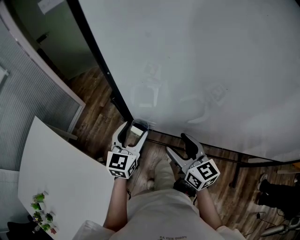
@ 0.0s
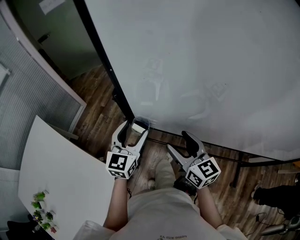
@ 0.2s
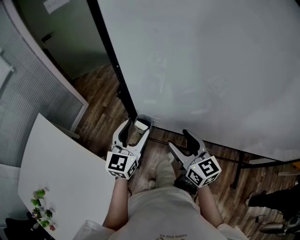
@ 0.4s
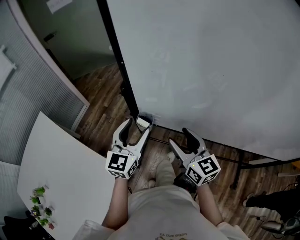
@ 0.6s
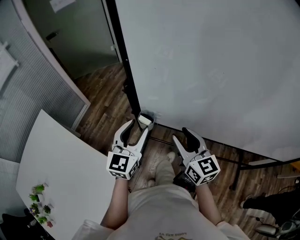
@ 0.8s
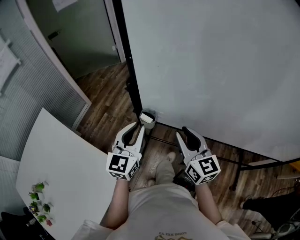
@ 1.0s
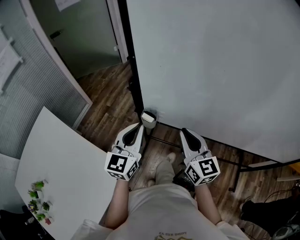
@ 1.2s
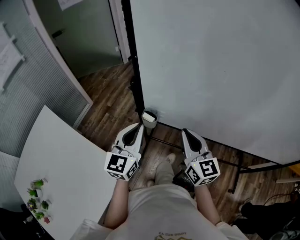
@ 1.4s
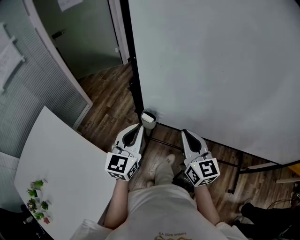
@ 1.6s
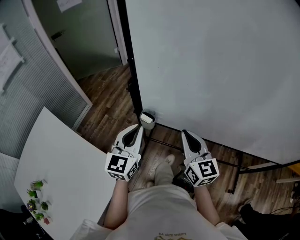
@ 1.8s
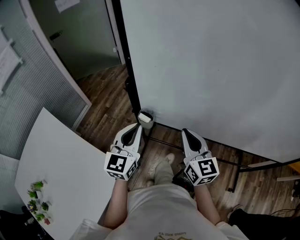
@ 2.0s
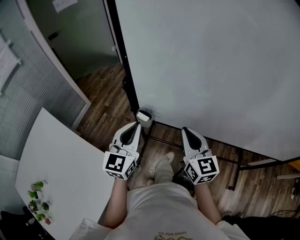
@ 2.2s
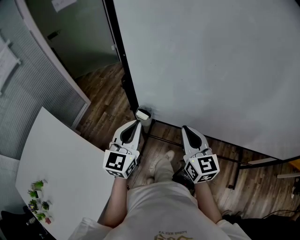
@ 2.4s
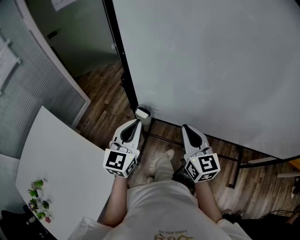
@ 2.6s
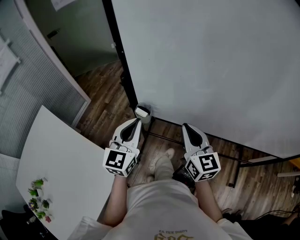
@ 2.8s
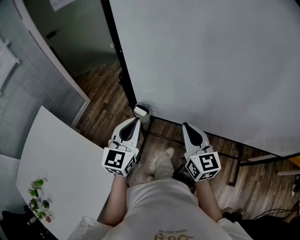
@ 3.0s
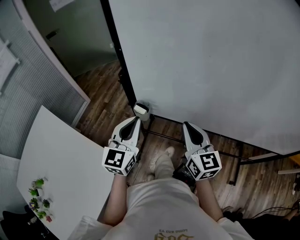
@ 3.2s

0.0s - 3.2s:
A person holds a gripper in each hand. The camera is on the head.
0.0s - 1.6s: The right gripper goes roughly 5 cm upward, and closes. Meanwhile the left gripper heads backward and upward, covering roughly 10 cm, and closes its fingers.
1.6s - 3.2s: The grippers move only a little.

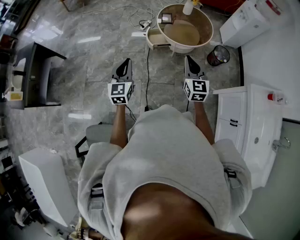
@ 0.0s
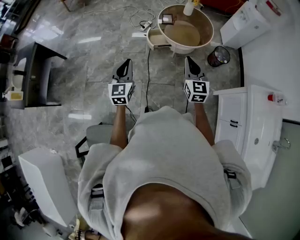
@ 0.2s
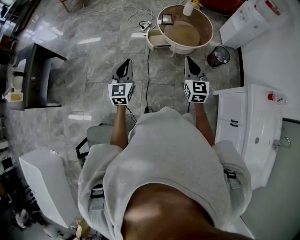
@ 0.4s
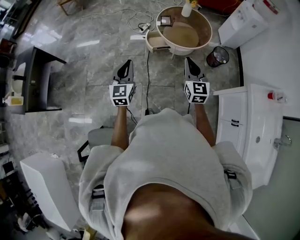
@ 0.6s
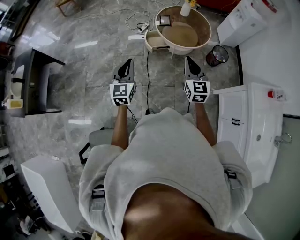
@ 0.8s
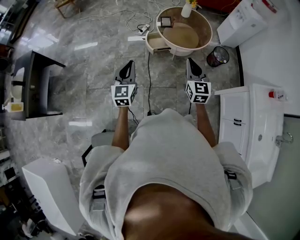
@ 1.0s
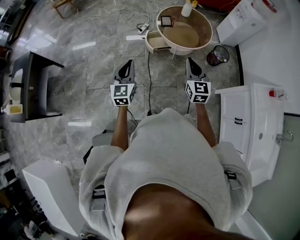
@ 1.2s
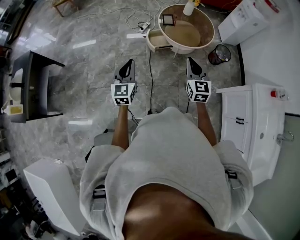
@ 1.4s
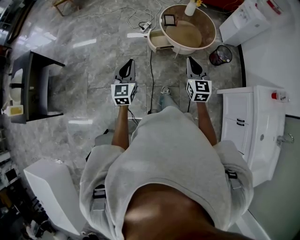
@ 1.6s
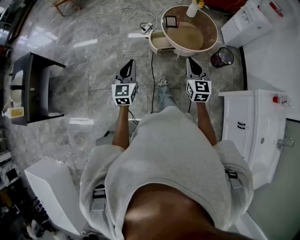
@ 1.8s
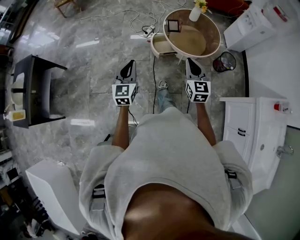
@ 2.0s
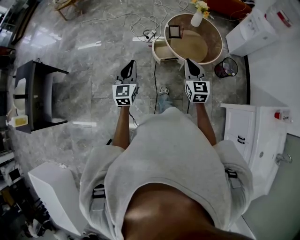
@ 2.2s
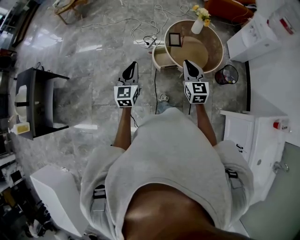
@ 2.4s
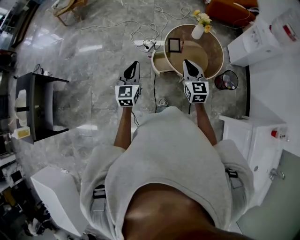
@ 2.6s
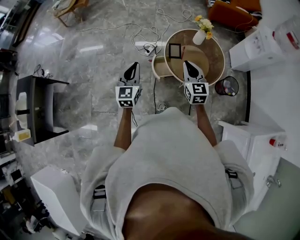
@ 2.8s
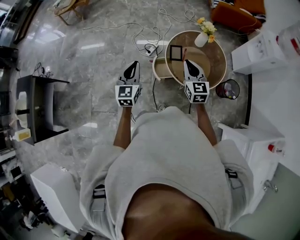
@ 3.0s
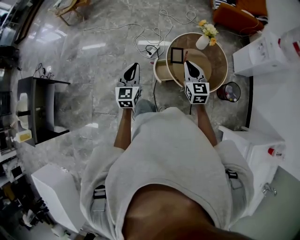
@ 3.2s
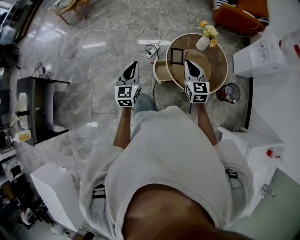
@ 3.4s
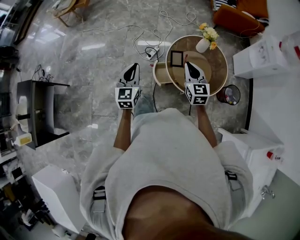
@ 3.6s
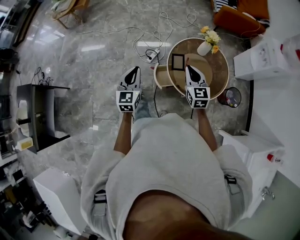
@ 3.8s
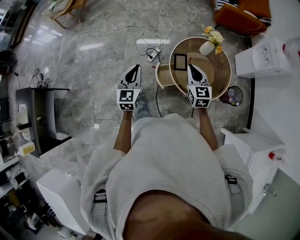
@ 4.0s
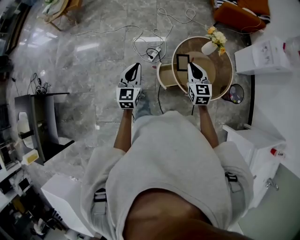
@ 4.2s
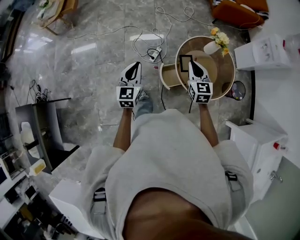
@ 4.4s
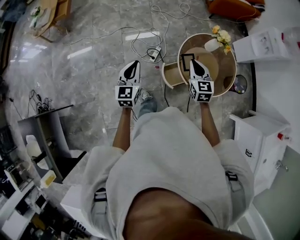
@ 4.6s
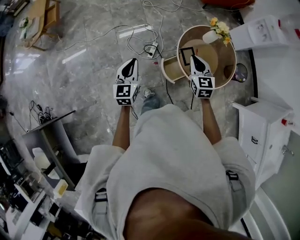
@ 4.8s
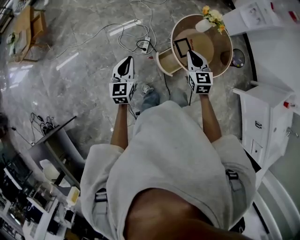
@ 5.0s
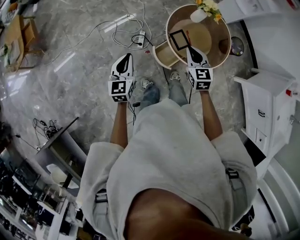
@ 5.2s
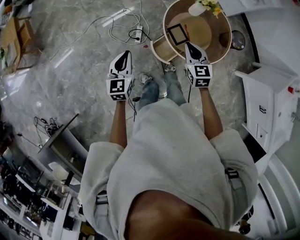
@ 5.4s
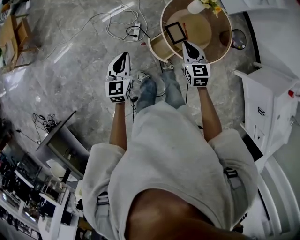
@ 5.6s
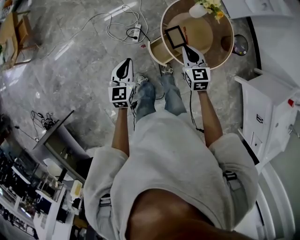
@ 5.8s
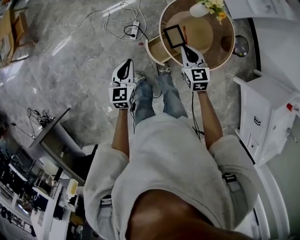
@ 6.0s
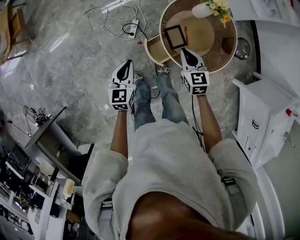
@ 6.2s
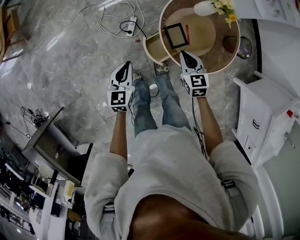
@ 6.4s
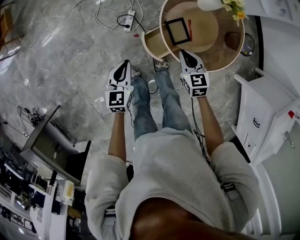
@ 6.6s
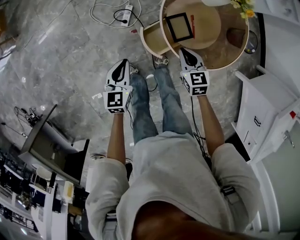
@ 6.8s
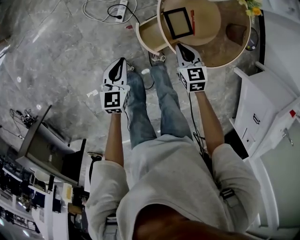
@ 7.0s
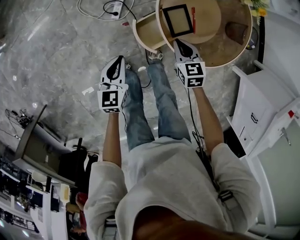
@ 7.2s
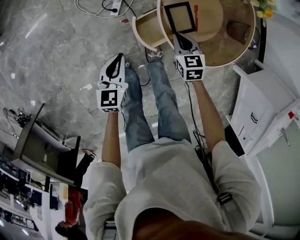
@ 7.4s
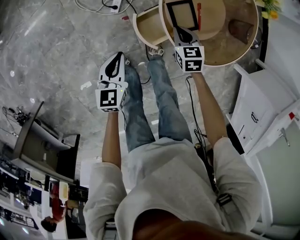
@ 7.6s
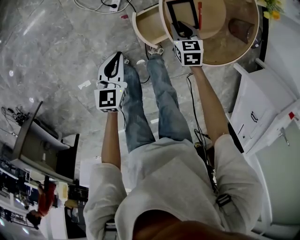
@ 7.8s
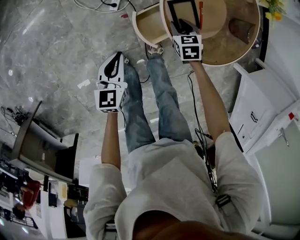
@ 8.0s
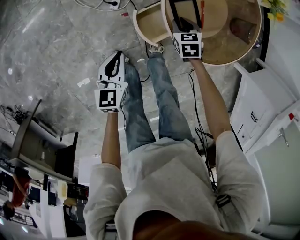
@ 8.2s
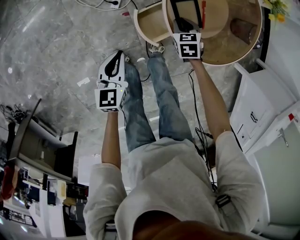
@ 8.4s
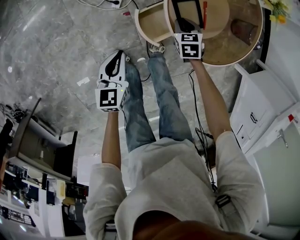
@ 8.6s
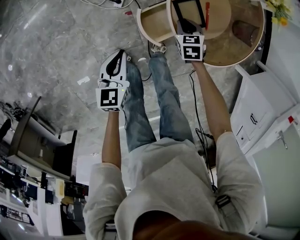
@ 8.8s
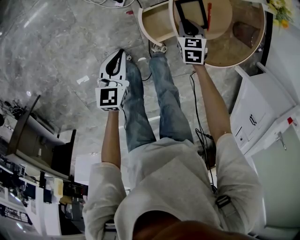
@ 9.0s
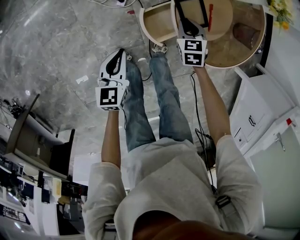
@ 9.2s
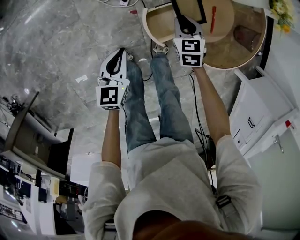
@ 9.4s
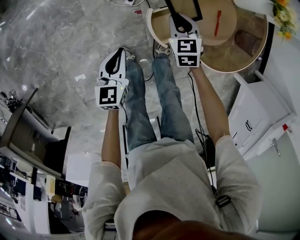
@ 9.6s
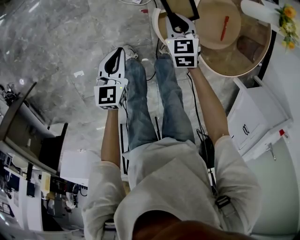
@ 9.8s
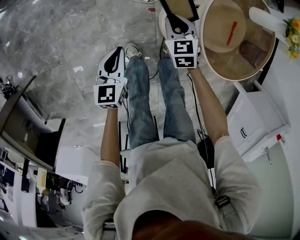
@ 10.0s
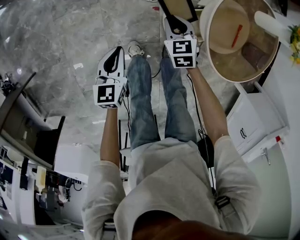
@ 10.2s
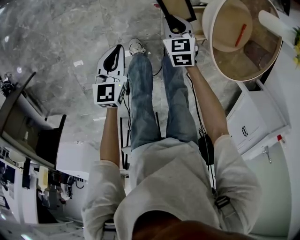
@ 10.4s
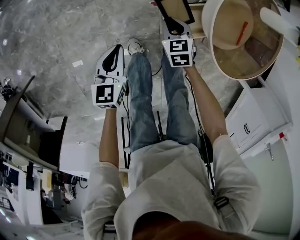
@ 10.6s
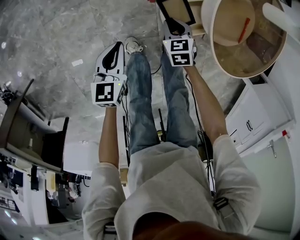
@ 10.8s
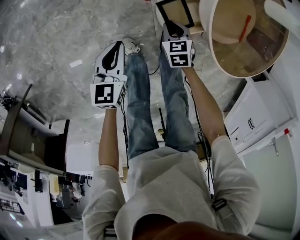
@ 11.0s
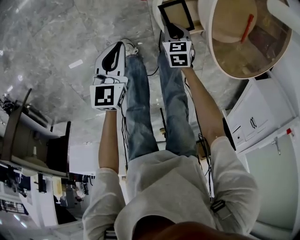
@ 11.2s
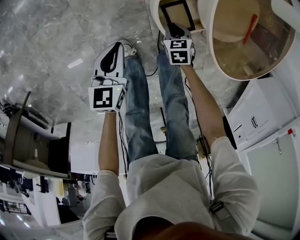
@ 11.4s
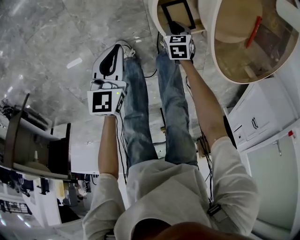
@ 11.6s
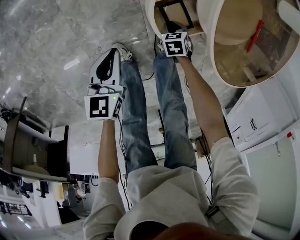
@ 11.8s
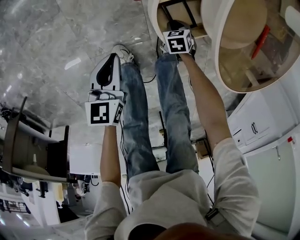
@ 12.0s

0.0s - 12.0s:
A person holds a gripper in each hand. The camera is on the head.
0.0s - 1.6s: The left gripper travels to the left and forward by some 10 cm. The right gripper shifts about 10 cm to the left.
1.6s - 3.0s: Both grippers move forward, some 40 cm.
3.0s - 4.4s: The grippers both shift forward and to the left by roughly 20 cm.
4.4s - 6.0s: Both grippers move downward and forward, roughly 20 cm. The left gripper turns by roughly 20 degrees.
6.0s - 7.6s: The two grippers go approximately 30 cm downward.
7.6s - 9.0s: The grippers stay close to where they were, moving slightly.
9.0s - 10.4s: The left gripper is displaced to the left by about 15 cm. Meanwhile the right gripper goes approximately 25 cm to the left.
10.4s - 12.0s: The right gripper heads downward, covering approximately 35 cm, and rotates roughly 30 degrees. The left gripper heads downward, covering about 15 cm.

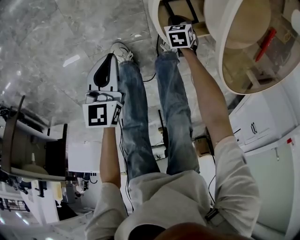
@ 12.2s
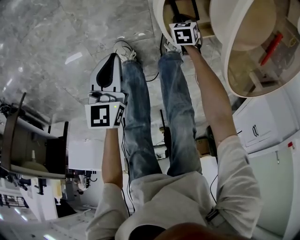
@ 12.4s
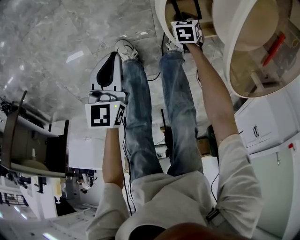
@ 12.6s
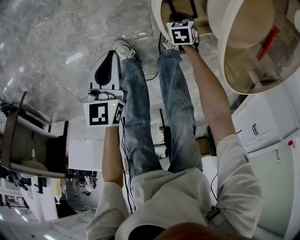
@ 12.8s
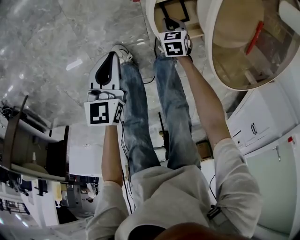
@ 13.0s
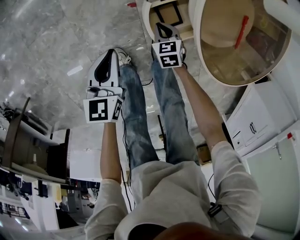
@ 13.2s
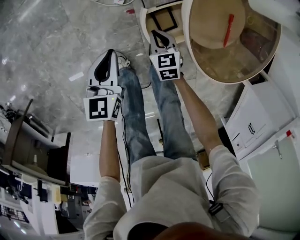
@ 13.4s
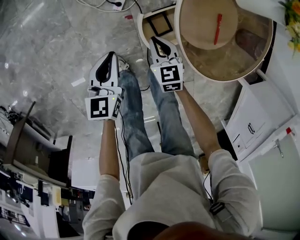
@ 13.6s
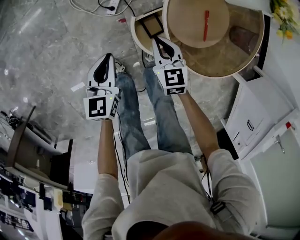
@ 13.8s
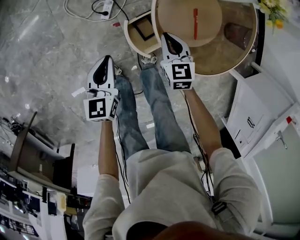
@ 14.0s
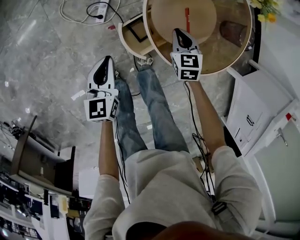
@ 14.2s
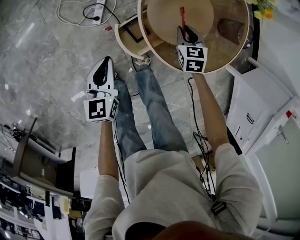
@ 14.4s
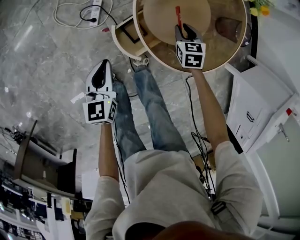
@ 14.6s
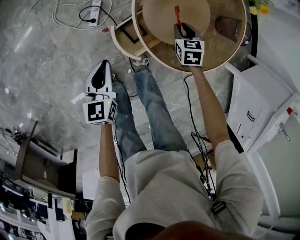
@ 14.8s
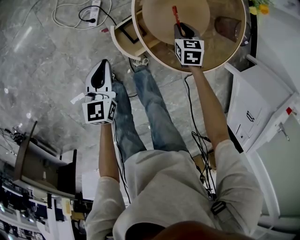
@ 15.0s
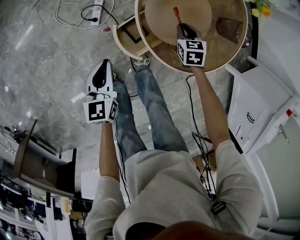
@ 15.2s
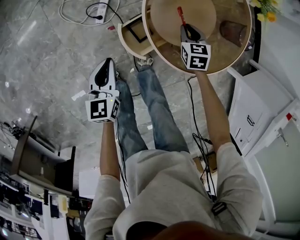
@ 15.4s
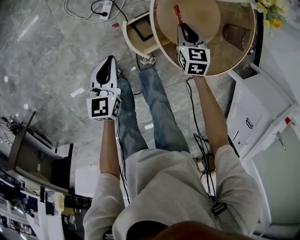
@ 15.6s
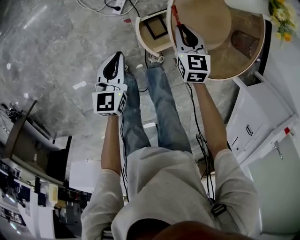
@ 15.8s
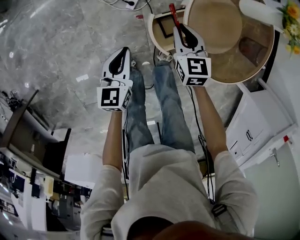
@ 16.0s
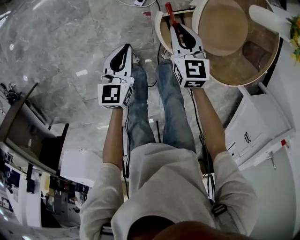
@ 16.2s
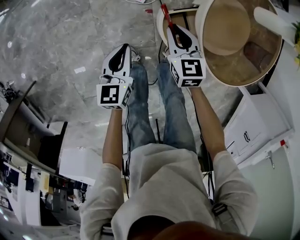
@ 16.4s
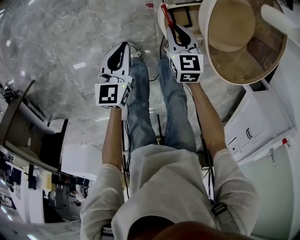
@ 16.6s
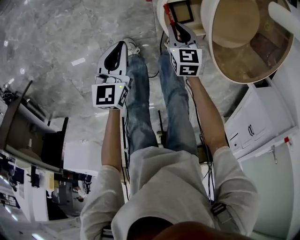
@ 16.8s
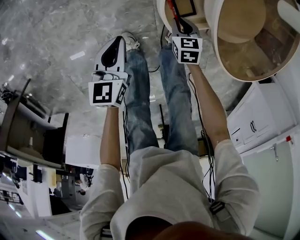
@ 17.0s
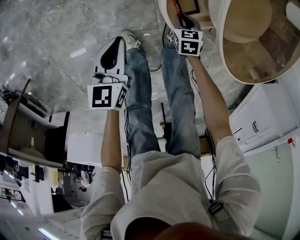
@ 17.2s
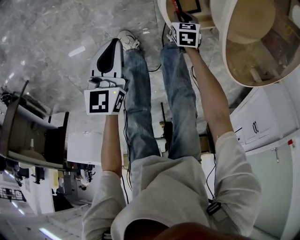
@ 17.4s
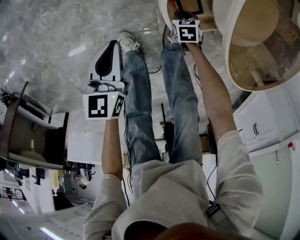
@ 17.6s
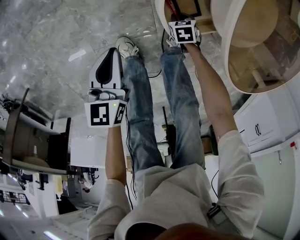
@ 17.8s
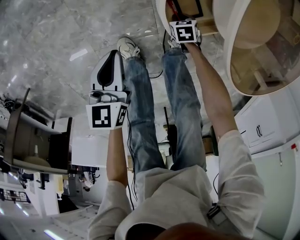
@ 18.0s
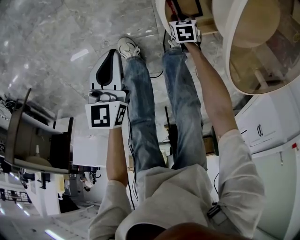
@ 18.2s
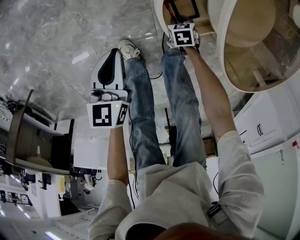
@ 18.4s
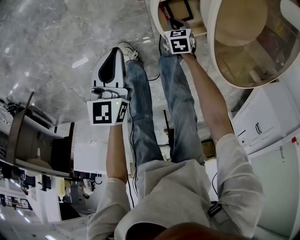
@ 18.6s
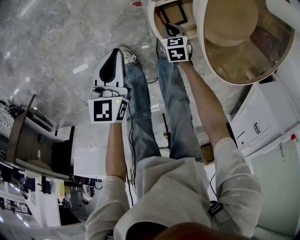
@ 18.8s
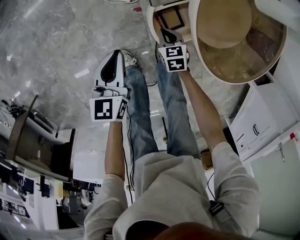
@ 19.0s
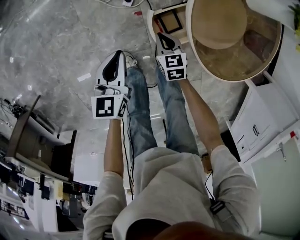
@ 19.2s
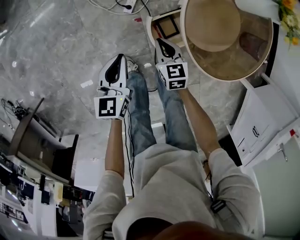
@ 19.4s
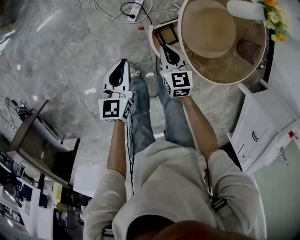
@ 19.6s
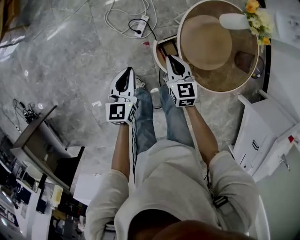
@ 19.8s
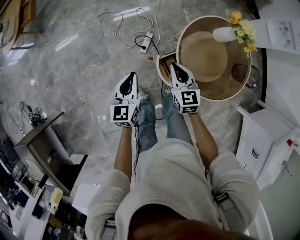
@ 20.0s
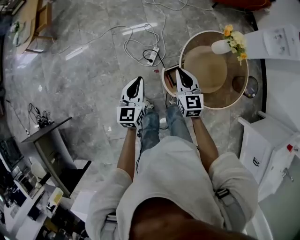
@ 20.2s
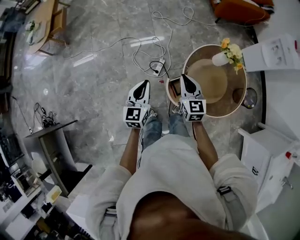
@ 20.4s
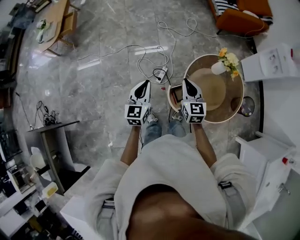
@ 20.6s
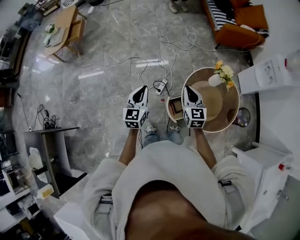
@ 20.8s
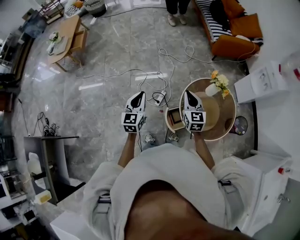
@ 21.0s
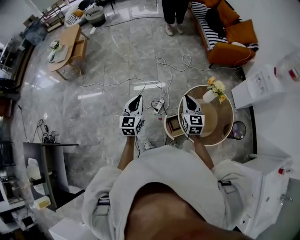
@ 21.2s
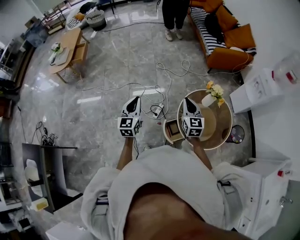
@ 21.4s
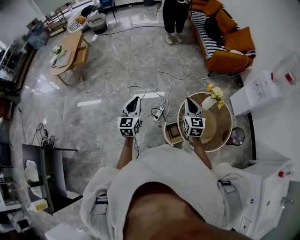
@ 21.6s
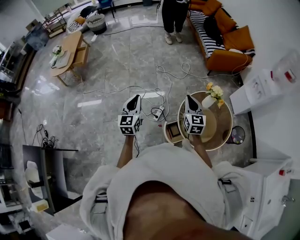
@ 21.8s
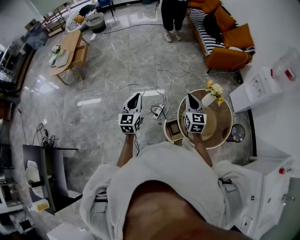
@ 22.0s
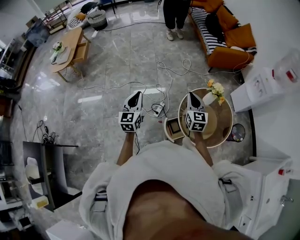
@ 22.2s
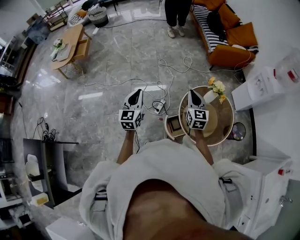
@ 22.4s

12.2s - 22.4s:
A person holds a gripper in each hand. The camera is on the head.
12.2s - 13.6s: The left gripper travels upward by some 15 cm. Meanwhile the right gripper goes about 35 cm upward, and points its fingers roughly 40 degrees further upward.
13.6s - 15.2s: The left gripper goes about 10 cm to the right. The right gripper is displaced to the right and forward by approximately 25 cm, and turns by roughly 20 degrees.
15.2s - 16.6s: The right gripper travels to the left by approximately 30 cm, and changes its angle by roughly 20 degrees. Meanwhile the left gripper shifts about 15 cm to the left.
16.6s - 18.0s: The right gripper is displaced downward by approximately 35 cm, and points its fingers approximately 30 degrees further downward; the left gripper moves downward, some 10 cm.
18.0s - 19.4s: The right gripper goes roughly 40 cm upward, and tips its fingers upward by roughly 40 degrees. Meanwhile the left gripper is displaced upward by some 20 cm.
19.4s - 21.0s: The two grippers go roughly 50 cm upward. The left gripper swivels some 20 degrees, while the right gripper rotates approximately 30 degrees.
21.0s - 22.4s: The right gripper changes place by some 5 cm. Meanwhile the left gripper shifts about 5 cm upward.
